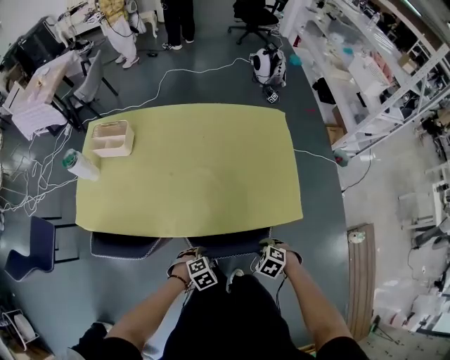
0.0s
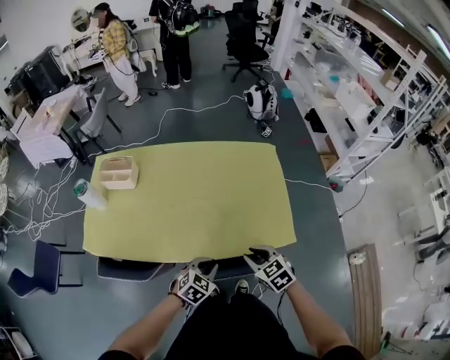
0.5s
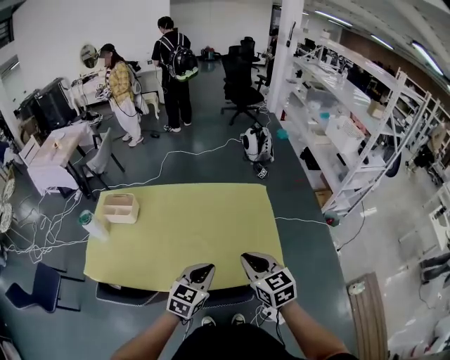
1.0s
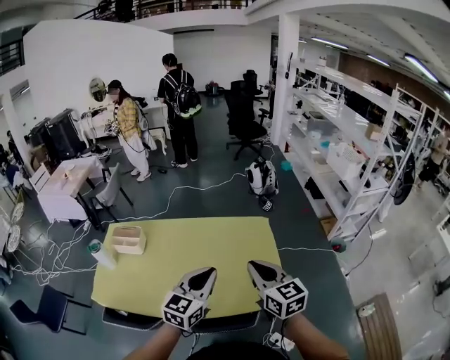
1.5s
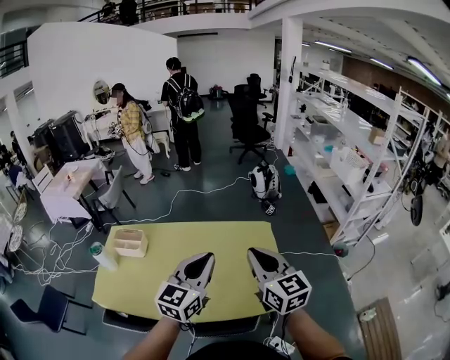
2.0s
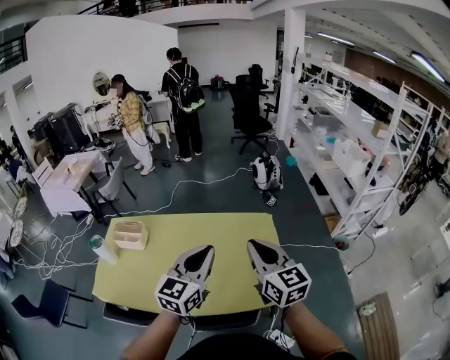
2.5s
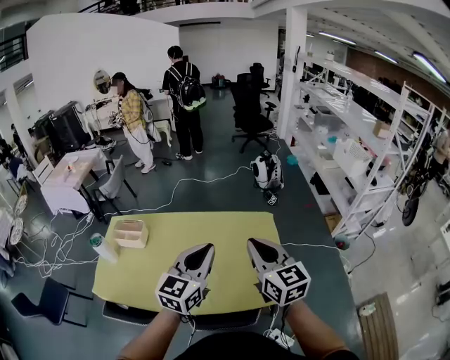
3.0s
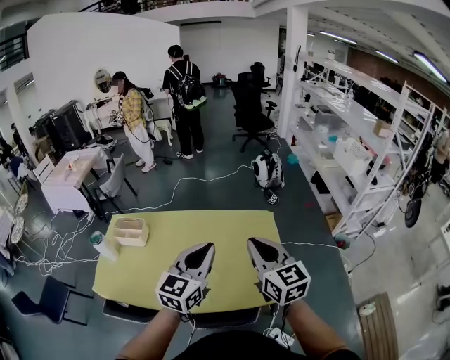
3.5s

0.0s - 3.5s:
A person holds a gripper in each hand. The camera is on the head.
0.0s - 2.0s: Both grippers move upward, approximately 50 cm. The left gripper points its fingers about 70 degrees further upward, and closes. The right gripper angles its fingers upward, by roughly 80 degrees, and closes.
2.0s - 3.5s: The grippers move only a little.

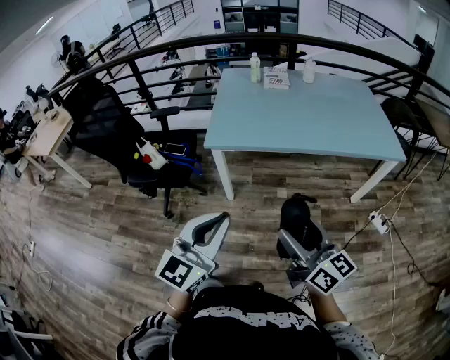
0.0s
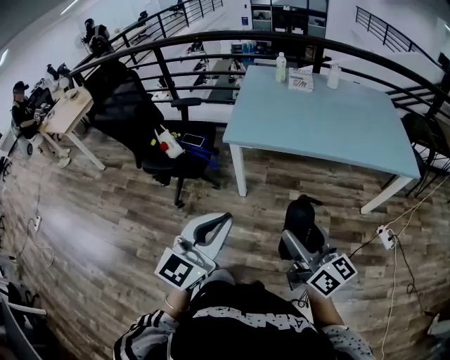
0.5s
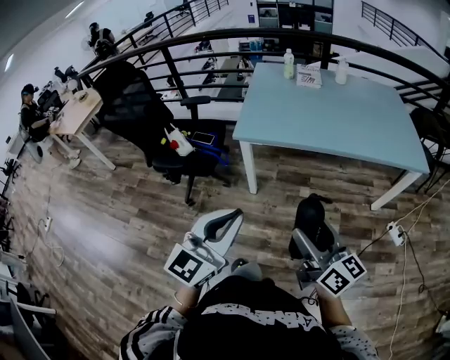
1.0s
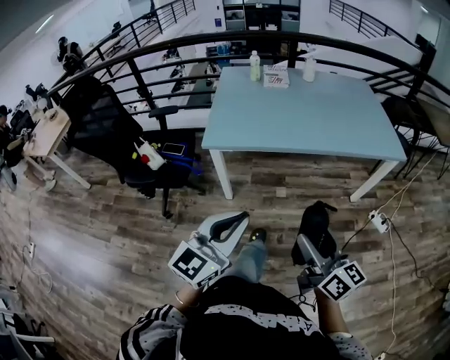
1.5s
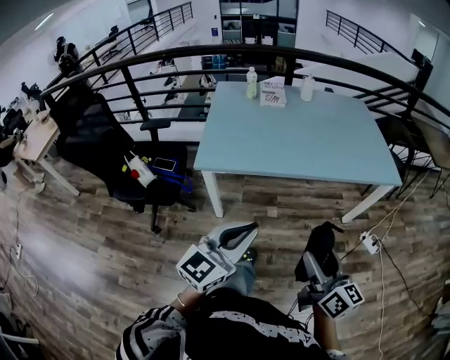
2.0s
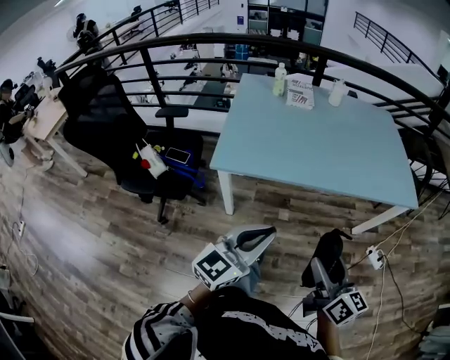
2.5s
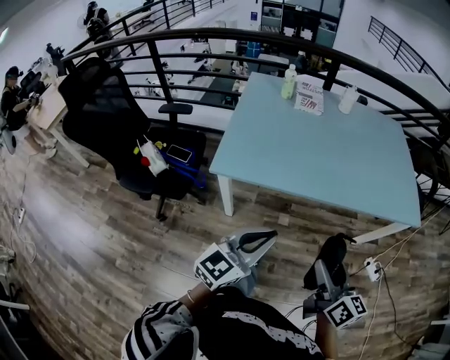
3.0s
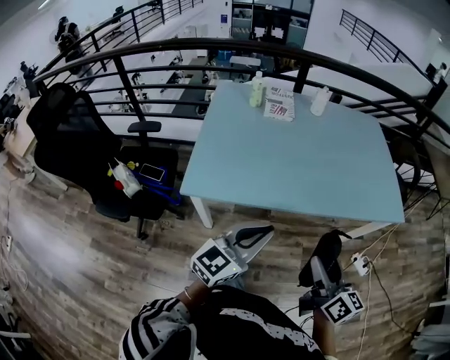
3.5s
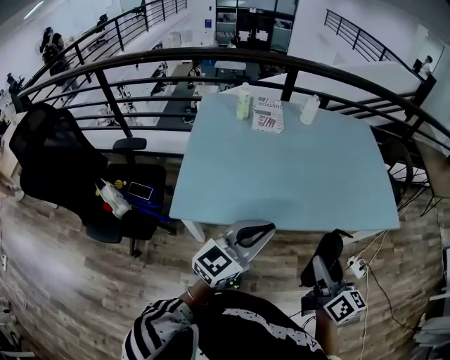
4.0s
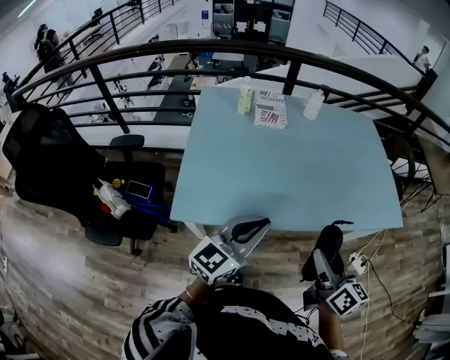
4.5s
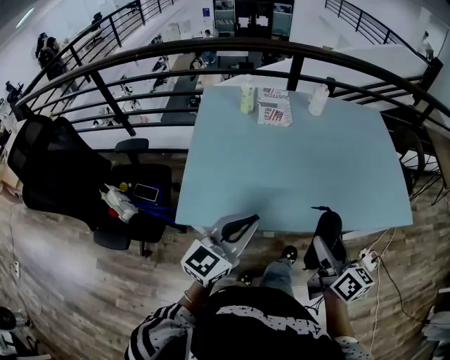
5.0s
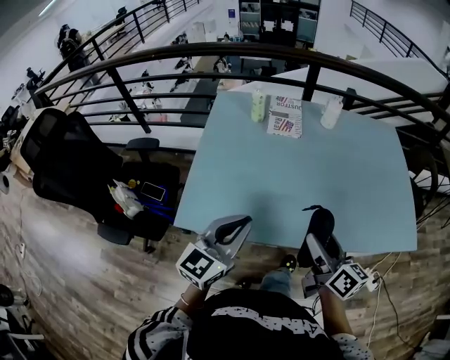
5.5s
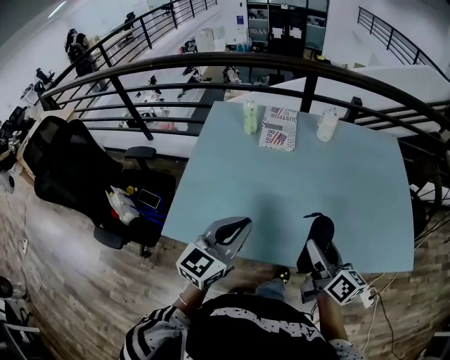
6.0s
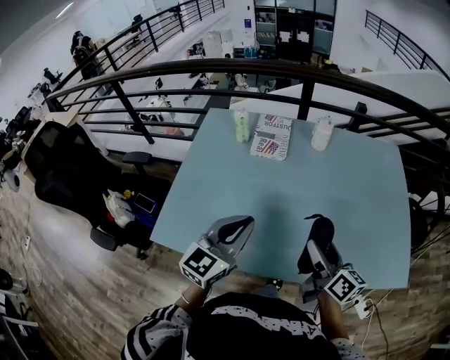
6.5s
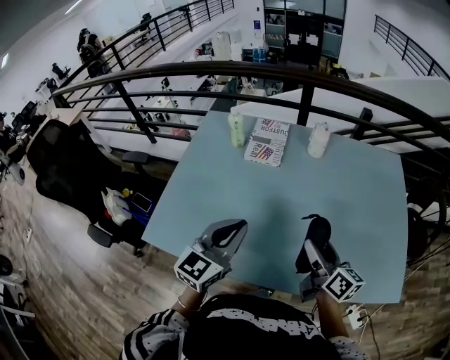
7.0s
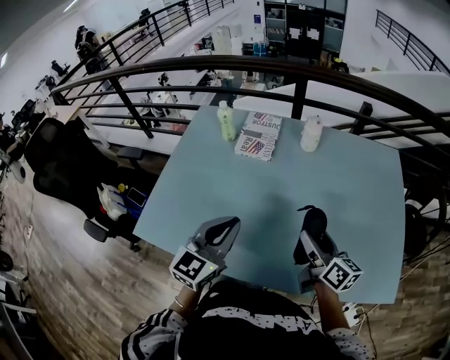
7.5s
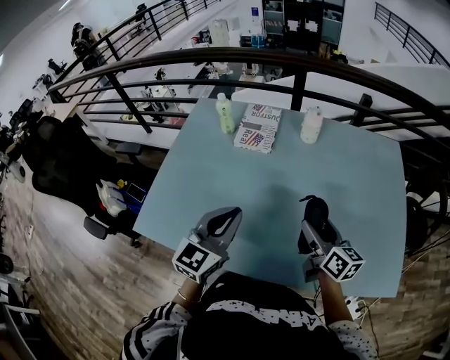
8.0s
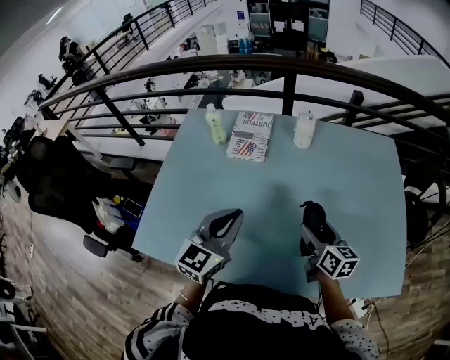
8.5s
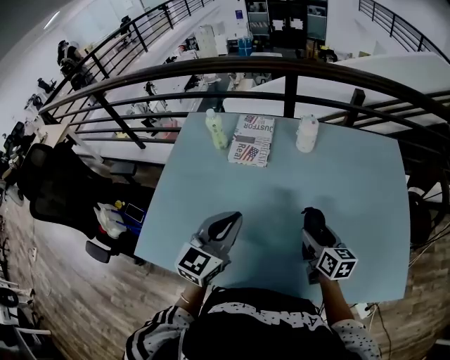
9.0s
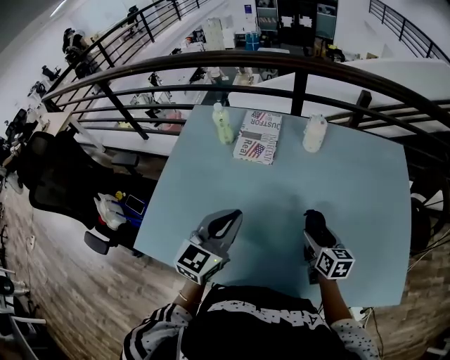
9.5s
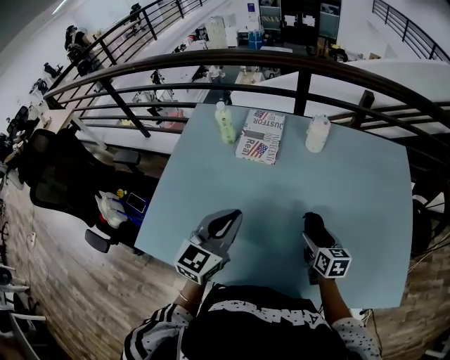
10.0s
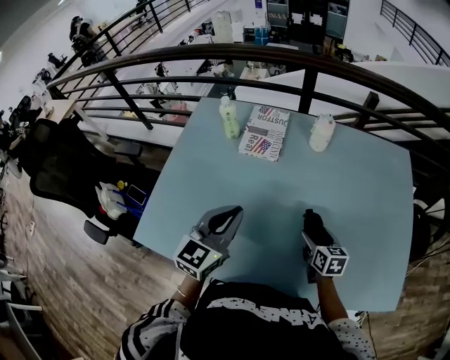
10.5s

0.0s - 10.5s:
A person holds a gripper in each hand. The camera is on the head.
0.0s - 2.0s: The left gripper is displaced forward and to the right by roughly 15 cm; the right gripper shifts roughly 10 cm to the right and forward.
2.0s - 4.0s: Both grippers travel together forward, some 30 cm.
4.0s - 6.5s: Both grippers move forward, roughly 30 cm. The left gripper rotates approximately 20 degrees.
6.5s - 8.5s: The left gripper is displaced forward and to the right by roughly 10 cm. Meanwhile the right gripper heads forward, to the right and downward, covering about 15 cm.
8.5s - 10.5s: The right gripper heads downward, covering some 10 cm, and rotates roughly 20 degrees.

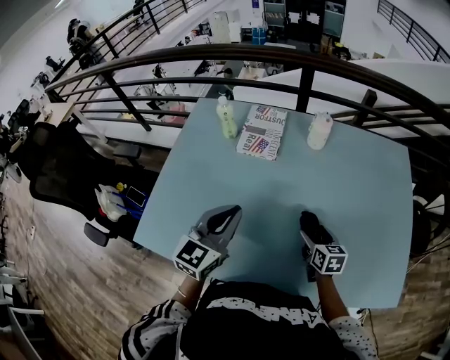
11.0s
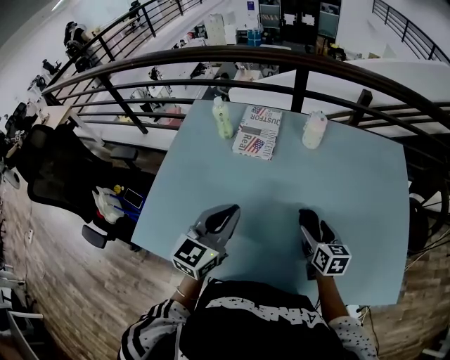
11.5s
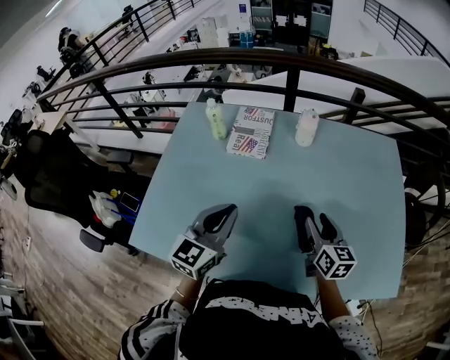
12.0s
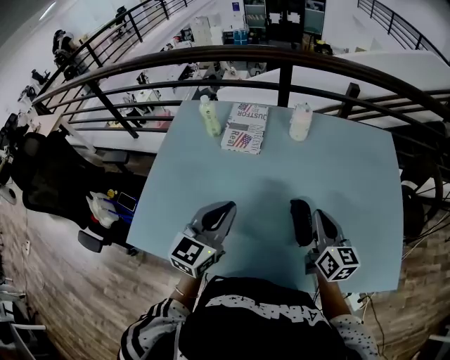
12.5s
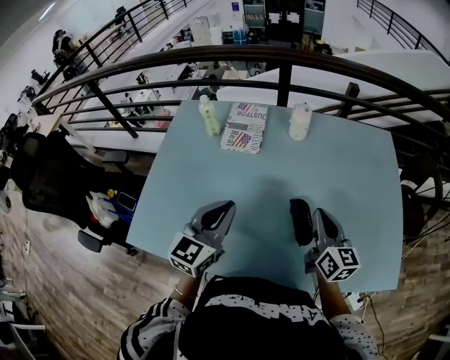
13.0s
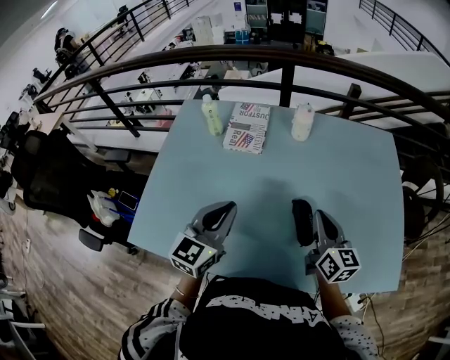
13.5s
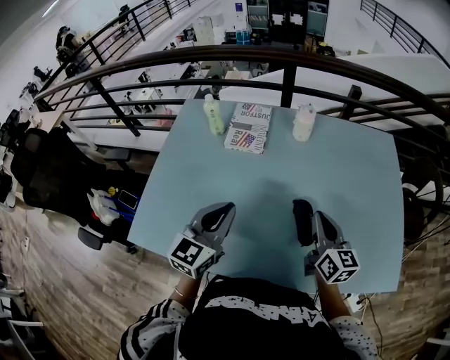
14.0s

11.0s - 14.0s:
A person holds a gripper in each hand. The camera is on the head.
11.0s - 12.5s: The right gripper heads upward, covering approximately 15 cm, rotates about 30 degrees, and closes its fingers.
12.5s - 14.0s: The grippers move only a little.

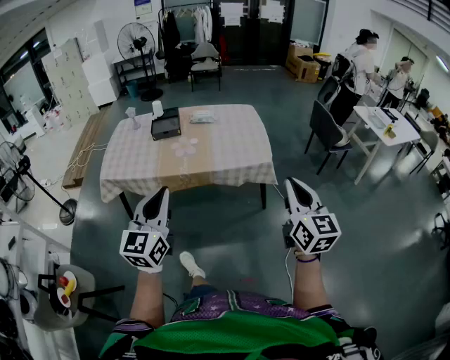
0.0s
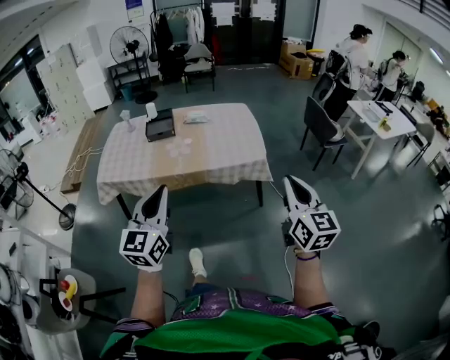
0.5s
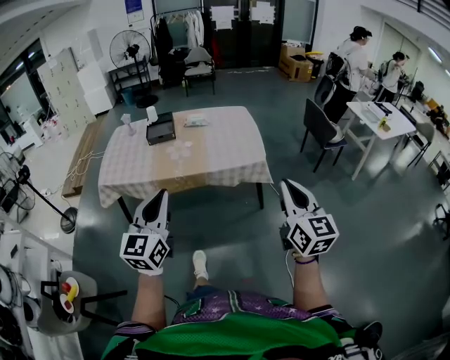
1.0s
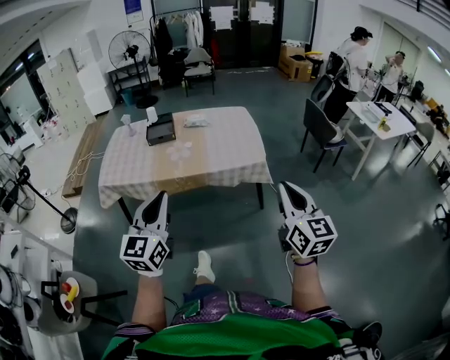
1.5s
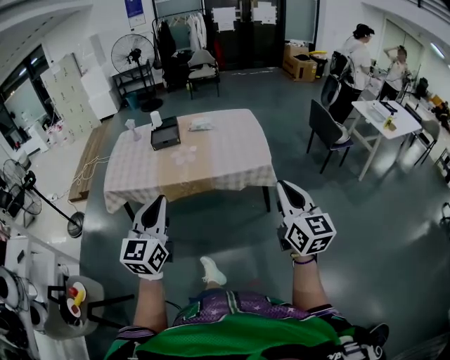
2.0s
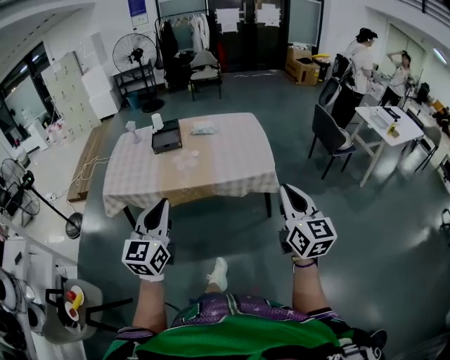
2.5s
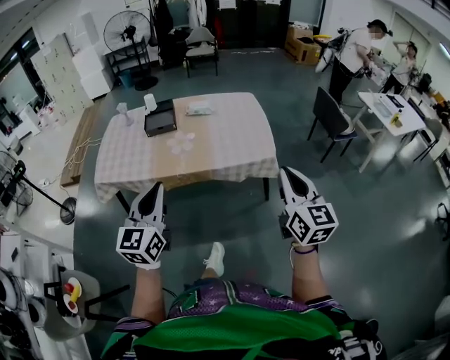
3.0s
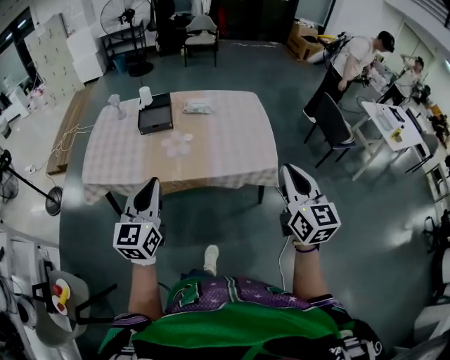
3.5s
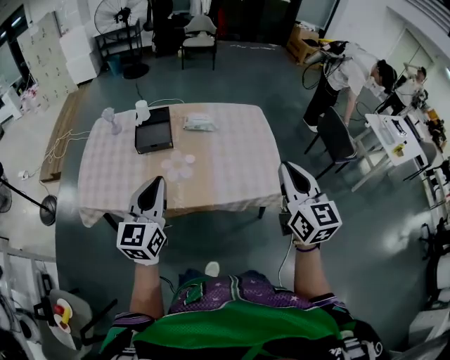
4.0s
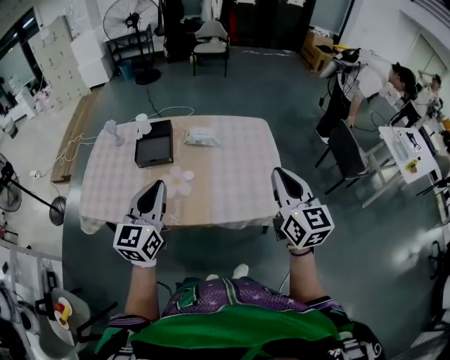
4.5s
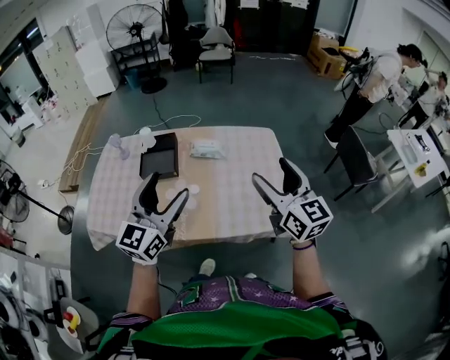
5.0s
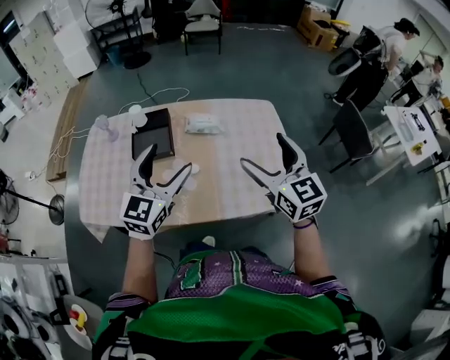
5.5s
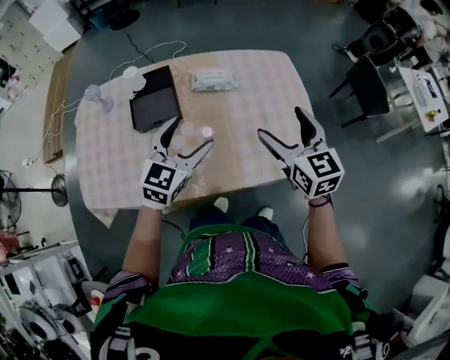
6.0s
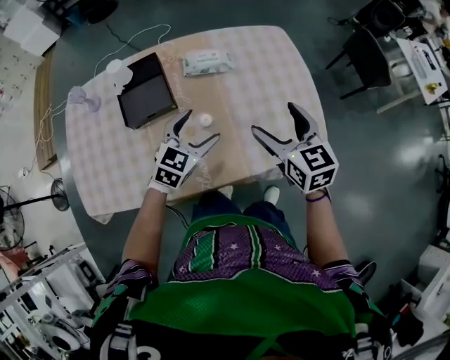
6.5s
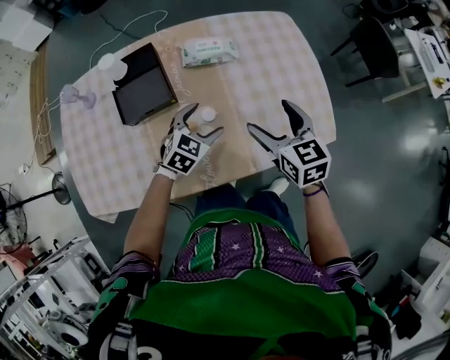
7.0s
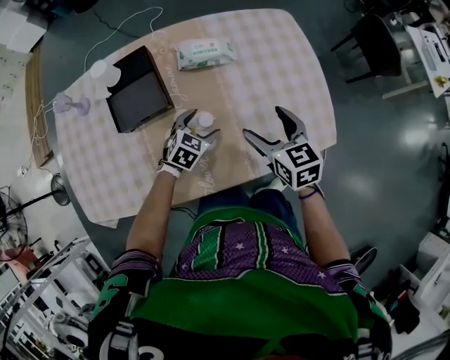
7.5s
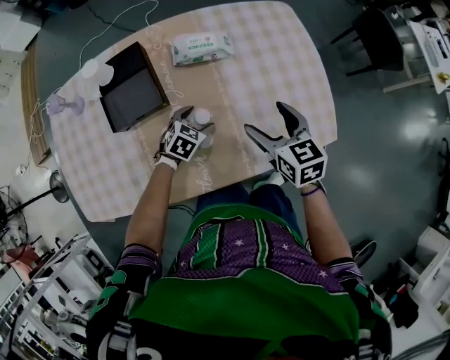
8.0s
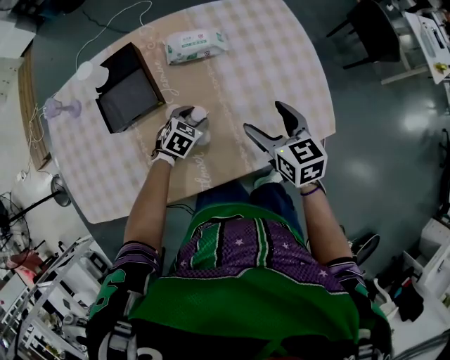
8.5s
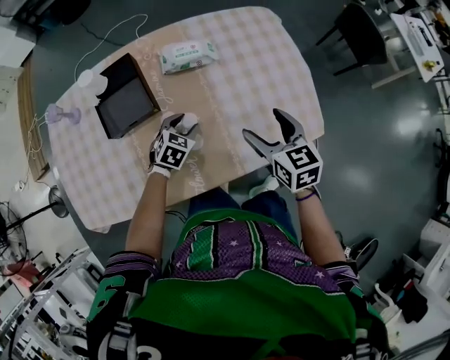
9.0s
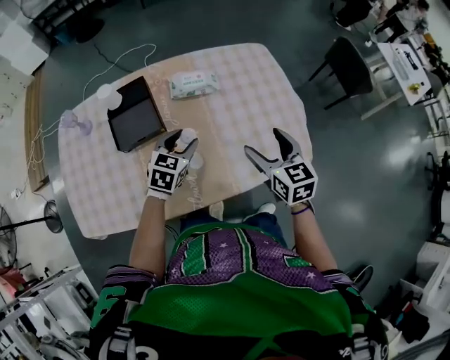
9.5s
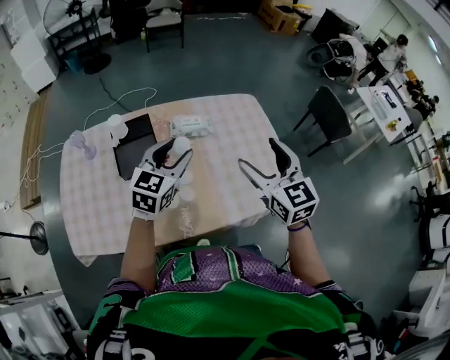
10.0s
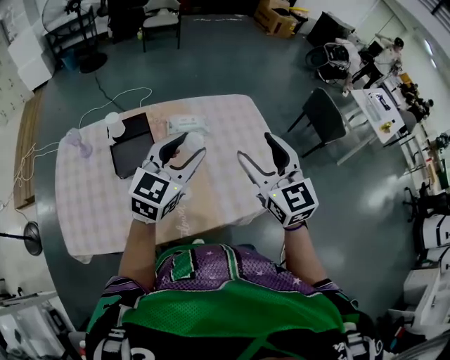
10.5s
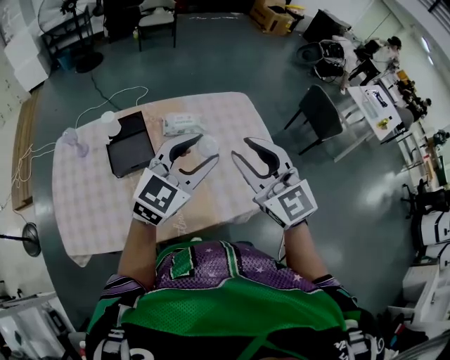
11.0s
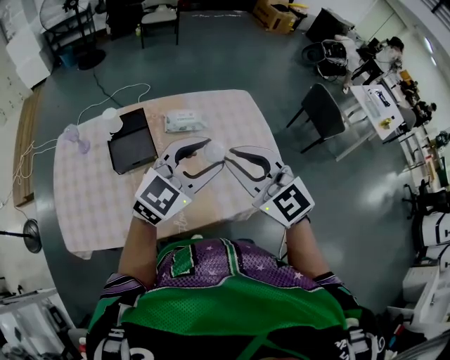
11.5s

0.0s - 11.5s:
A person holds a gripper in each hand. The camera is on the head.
0.0s - 2.0s: The grippers stay close to where they were, moving slightly.
2.0s - 4.0s: Both grippers travel together forward, roughly 40 cm.
4.0s - 6.0s: The two grippers go approximately 30 cm forward and downward. The right gripper opens its fingers. The left gripper rotates about 30 degrees, and opens up.
6.0s - 7.5s: The right gripper heads downward, covering roughly 20 cm. The left gripper goes some 30 cm downward, and changes its angle by some 30 degrees.
7.5s - 9.5s: The right gripper travels upward and to the right by approximately 10 cm; the left gripper is displaced upward by about 15 cm, and closes.
9.5s - 11.5s: The right gripper shifts roughly 25 cm upward and to the left, rotates approximately 50 degrees, and closes its fingers, while the left gripper shifts some 25 cm upward, and swivels about 40 degrees.
